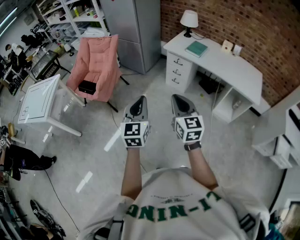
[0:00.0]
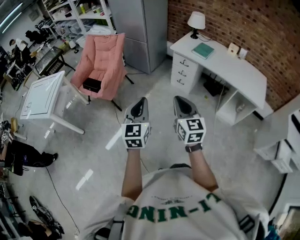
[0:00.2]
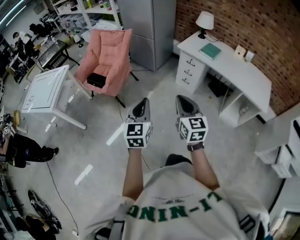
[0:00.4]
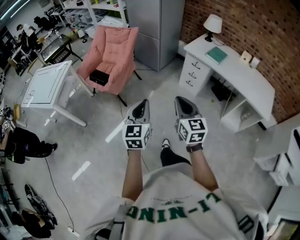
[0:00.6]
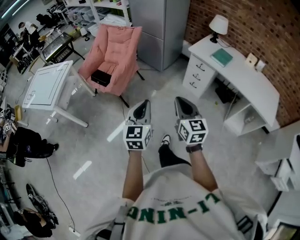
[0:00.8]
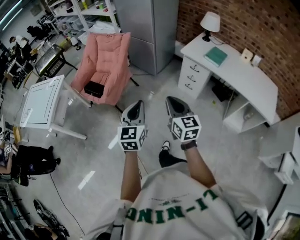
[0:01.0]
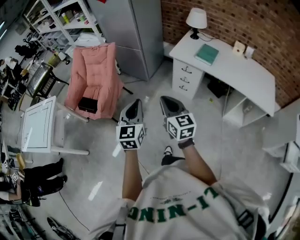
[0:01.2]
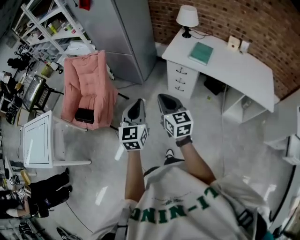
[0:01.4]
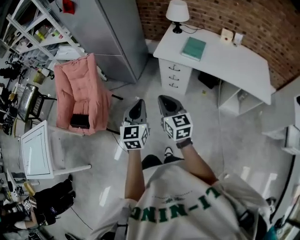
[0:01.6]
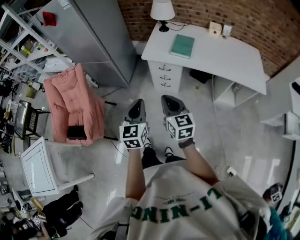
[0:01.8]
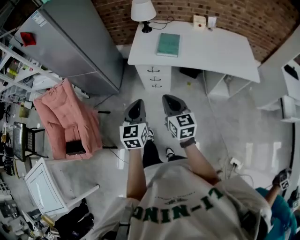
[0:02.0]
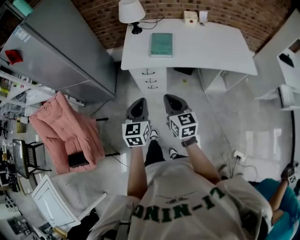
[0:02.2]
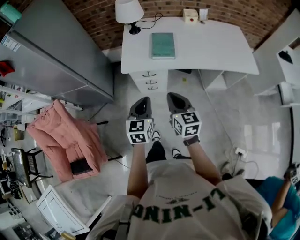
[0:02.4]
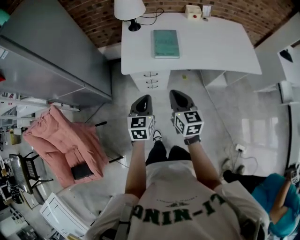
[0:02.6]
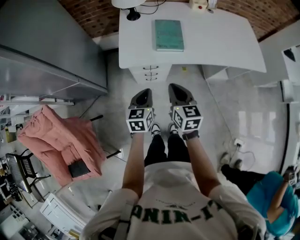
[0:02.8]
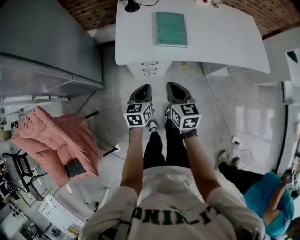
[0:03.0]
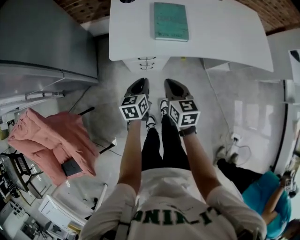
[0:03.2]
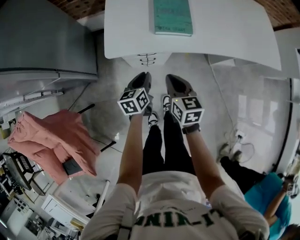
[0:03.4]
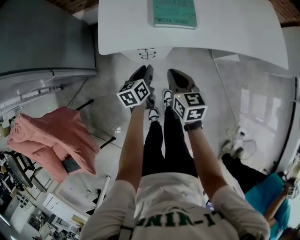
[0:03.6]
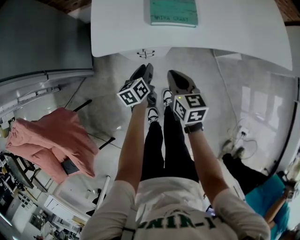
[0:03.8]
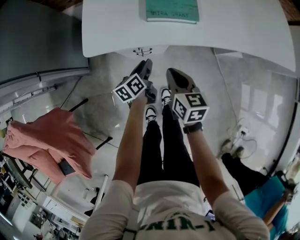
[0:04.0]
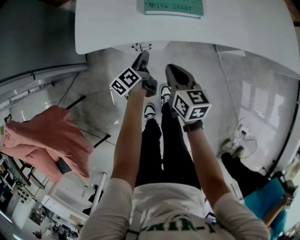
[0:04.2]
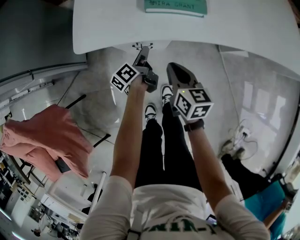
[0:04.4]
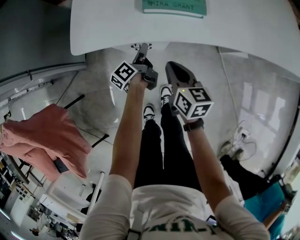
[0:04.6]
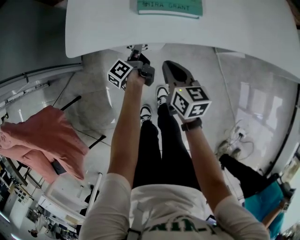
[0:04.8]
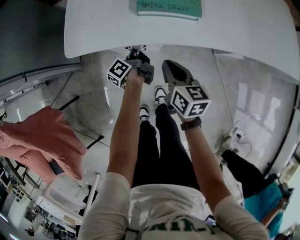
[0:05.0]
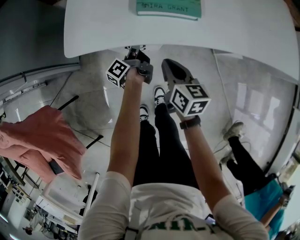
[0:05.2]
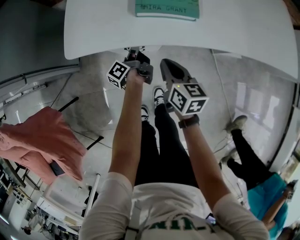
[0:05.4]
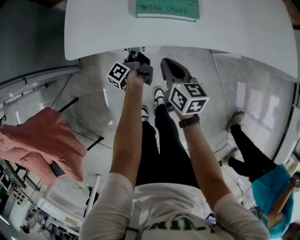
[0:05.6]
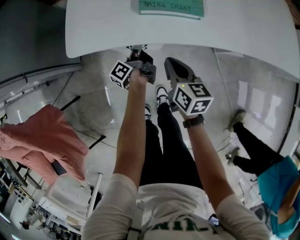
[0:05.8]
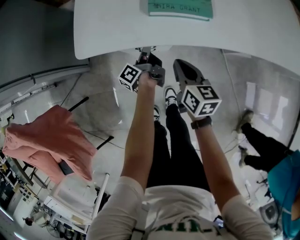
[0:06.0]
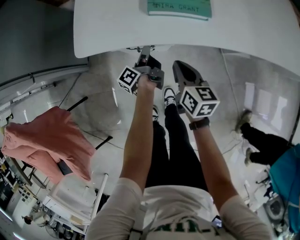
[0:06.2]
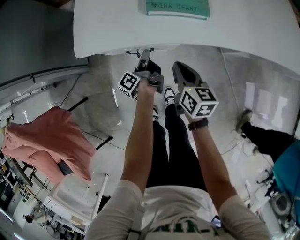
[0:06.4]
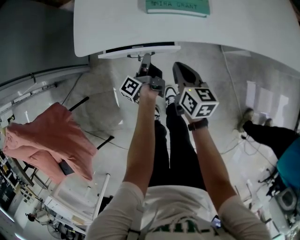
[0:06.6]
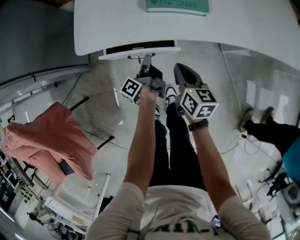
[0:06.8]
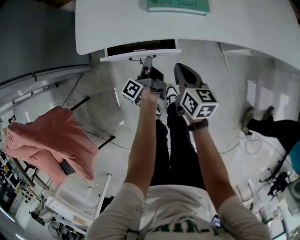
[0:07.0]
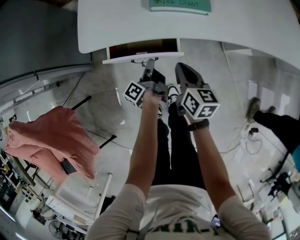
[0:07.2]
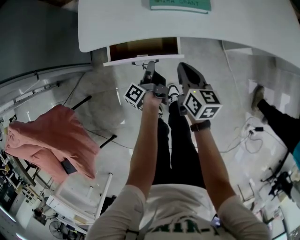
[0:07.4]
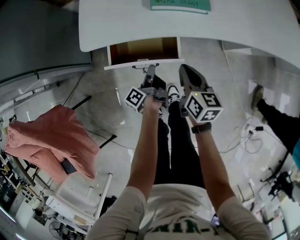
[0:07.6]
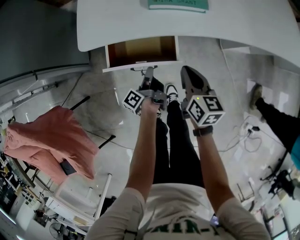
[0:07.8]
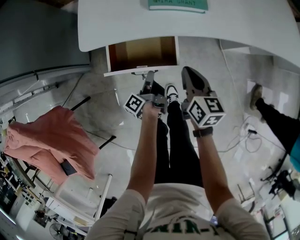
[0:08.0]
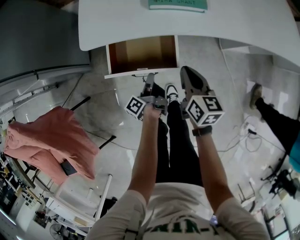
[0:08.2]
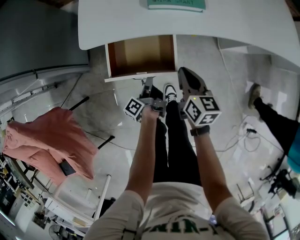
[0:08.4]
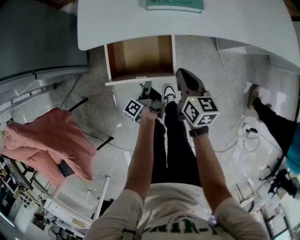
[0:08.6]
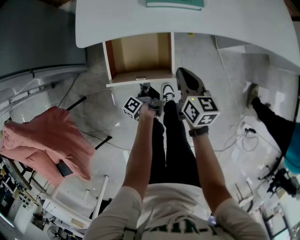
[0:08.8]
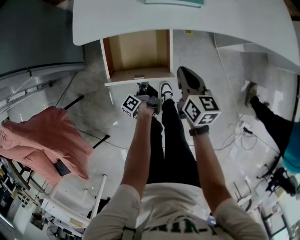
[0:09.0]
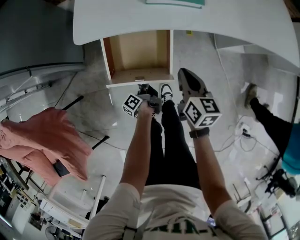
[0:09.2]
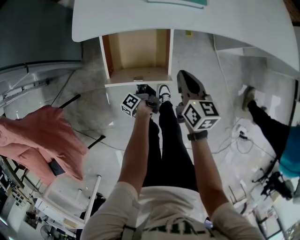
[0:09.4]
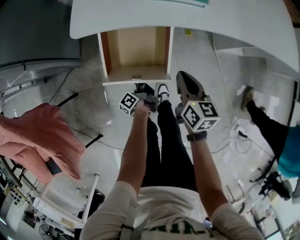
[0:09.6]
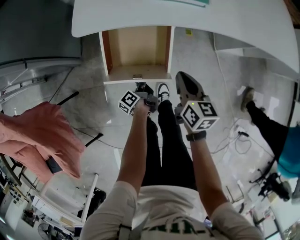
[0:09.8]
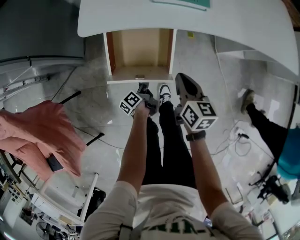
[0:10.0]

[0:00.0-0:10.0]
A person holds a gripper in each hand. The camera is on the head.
0:00.0 to 0:01.4: Both grippers travel together forward, approximately 30 cm.
0:01.4 to 0:02.8: The left gripper moves about 40 cm, and turns by approximately 40 degrees; the right gripper changes place by roughly 35 cm, and changes its angle by approximately 40 degrees.
0:02.8 to 0:04.2: The left gripper goes approximately 35 cm downward and forward, rotates around the line of its fingers by approximately 50 degrees, counterclockwise from behind, and opens; the right gripper moves downward, some 25 cm.
0:04.2 to 0:05.8: The left gripper moves forward, roughly 5 cm, changes its angle by approximately 30 degrees, and closes.
0:05.8 to 0:07.2: The left gripper shifts some 10 cm backward.
0:07.2 to 0:08.6: The left gripper goes about 10 cm backward.
0:08.6 to 0:10.0: The left gripper goes approximately 5 cm downward, and opens.

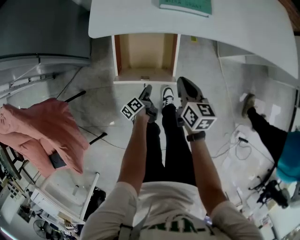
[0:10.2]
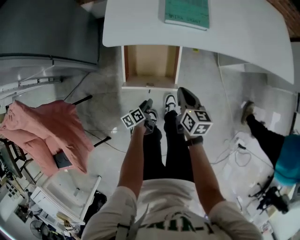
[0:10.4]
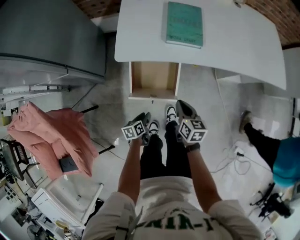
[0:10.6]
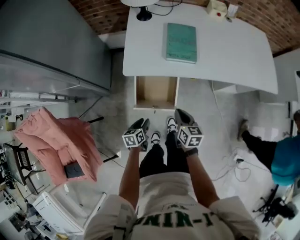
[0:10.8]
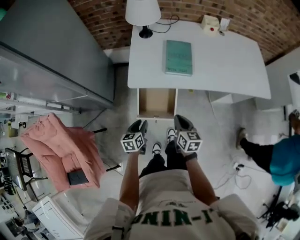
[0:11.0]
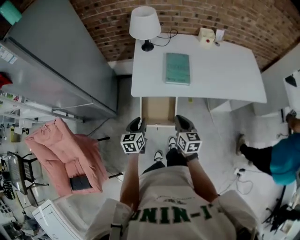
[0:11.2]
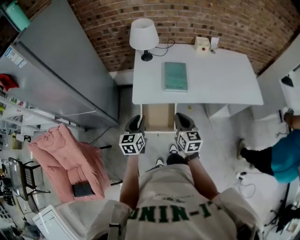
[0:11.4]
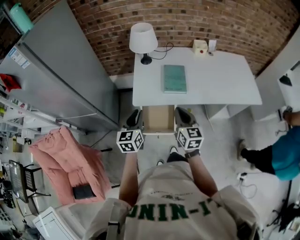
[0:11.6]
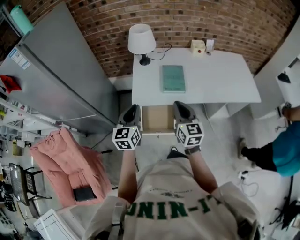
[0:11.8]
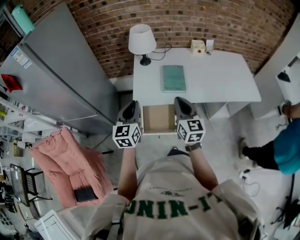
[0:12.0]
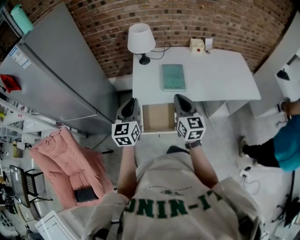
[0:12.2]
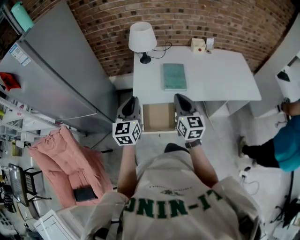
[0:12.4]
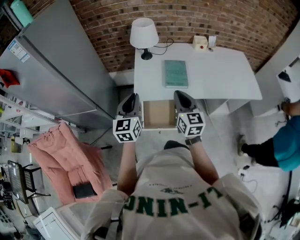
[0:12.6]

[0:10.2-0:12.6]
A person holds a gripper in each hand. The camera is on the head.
0:10.2 to 0:11.4: The right gripper is displaced upward by roughly 30 cm, and turns by roughly 20 degrees; the left gripper travels upward by approximately 50 cm, and rolls clockwise, seen from behind, by roughly 60 degrees.
0:11.4 to 0:12.6: The two grippers go roughly 10 cm upward.

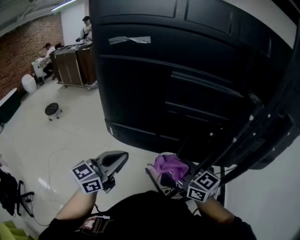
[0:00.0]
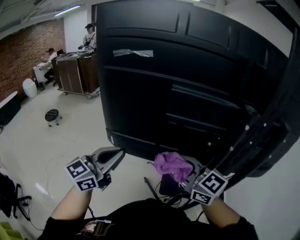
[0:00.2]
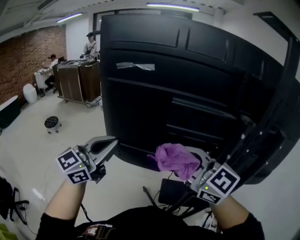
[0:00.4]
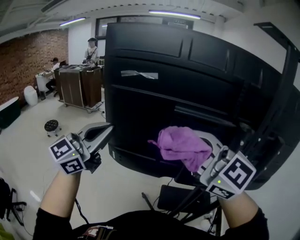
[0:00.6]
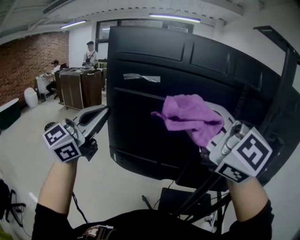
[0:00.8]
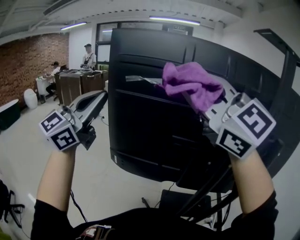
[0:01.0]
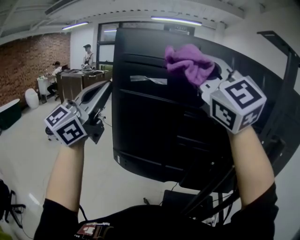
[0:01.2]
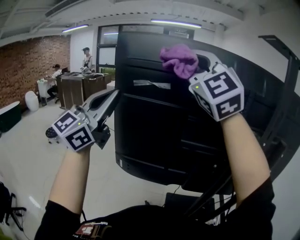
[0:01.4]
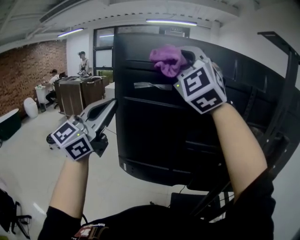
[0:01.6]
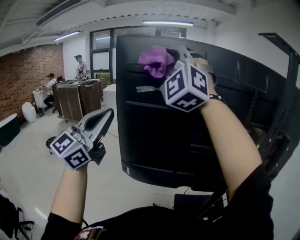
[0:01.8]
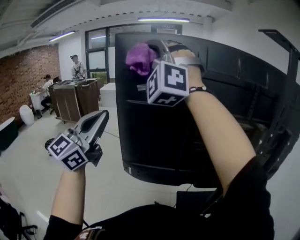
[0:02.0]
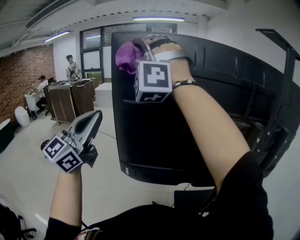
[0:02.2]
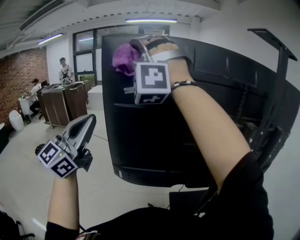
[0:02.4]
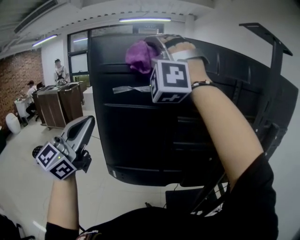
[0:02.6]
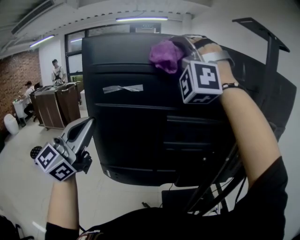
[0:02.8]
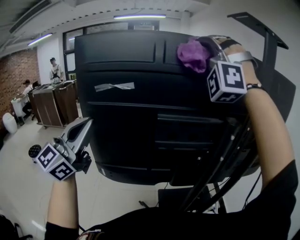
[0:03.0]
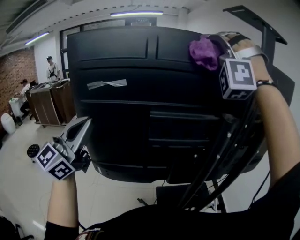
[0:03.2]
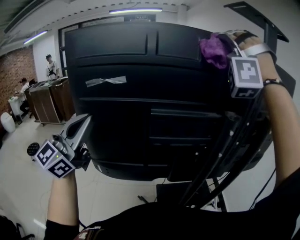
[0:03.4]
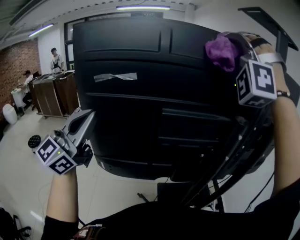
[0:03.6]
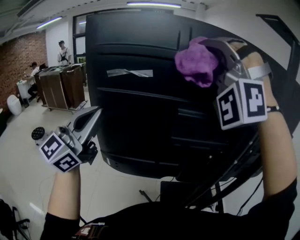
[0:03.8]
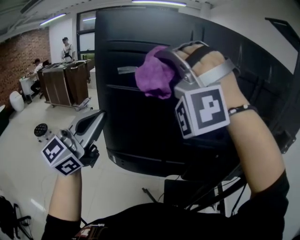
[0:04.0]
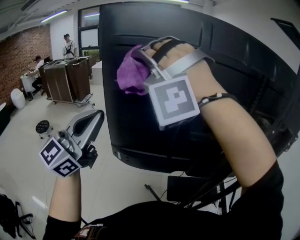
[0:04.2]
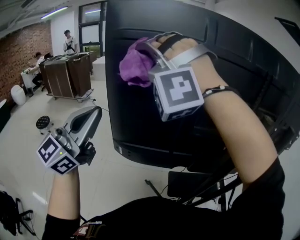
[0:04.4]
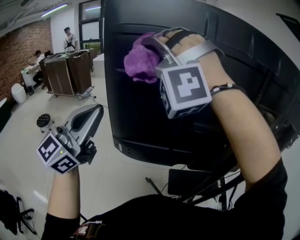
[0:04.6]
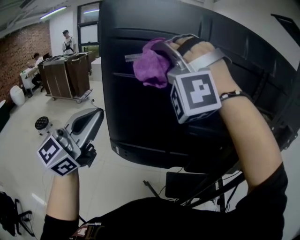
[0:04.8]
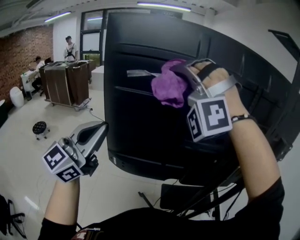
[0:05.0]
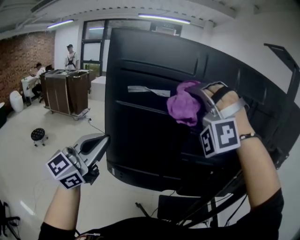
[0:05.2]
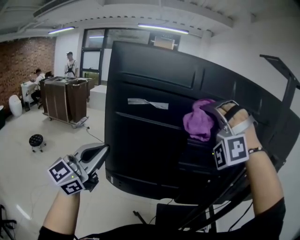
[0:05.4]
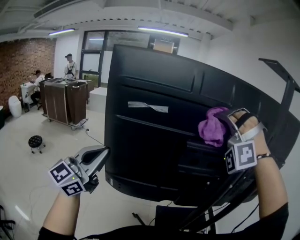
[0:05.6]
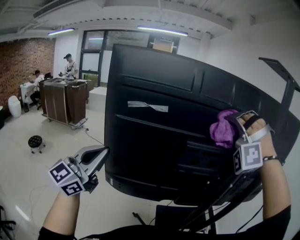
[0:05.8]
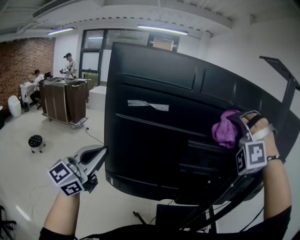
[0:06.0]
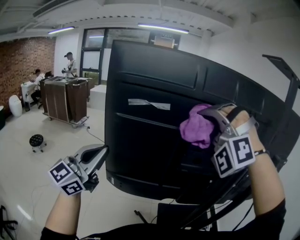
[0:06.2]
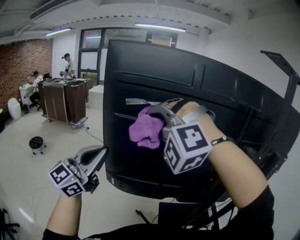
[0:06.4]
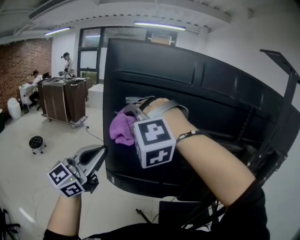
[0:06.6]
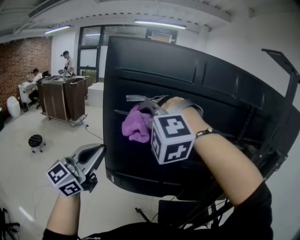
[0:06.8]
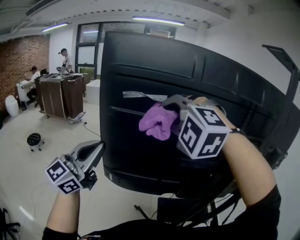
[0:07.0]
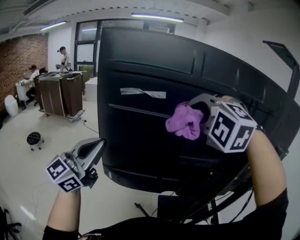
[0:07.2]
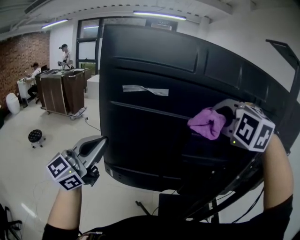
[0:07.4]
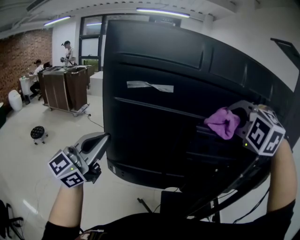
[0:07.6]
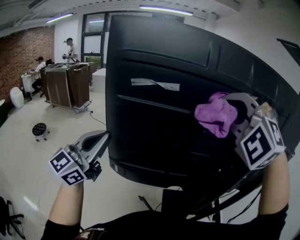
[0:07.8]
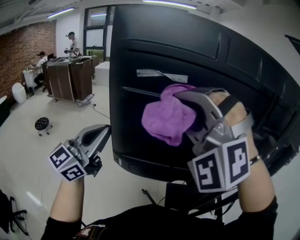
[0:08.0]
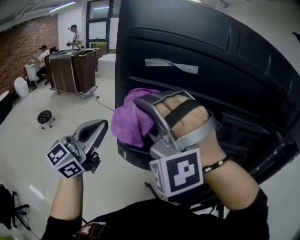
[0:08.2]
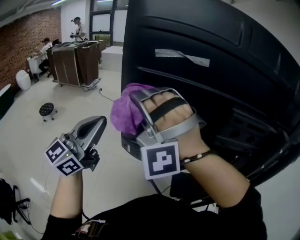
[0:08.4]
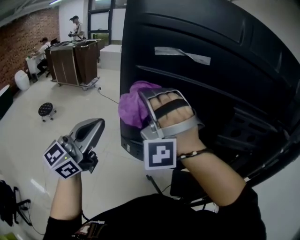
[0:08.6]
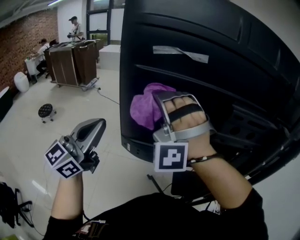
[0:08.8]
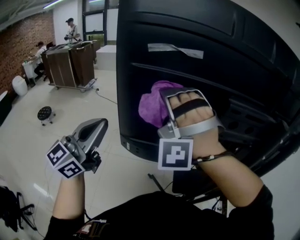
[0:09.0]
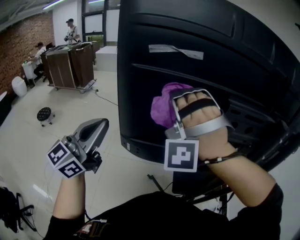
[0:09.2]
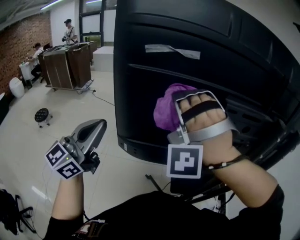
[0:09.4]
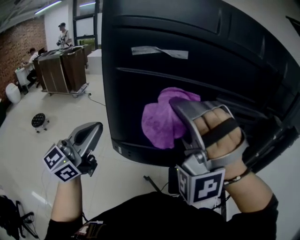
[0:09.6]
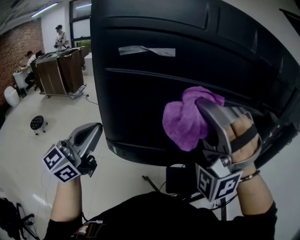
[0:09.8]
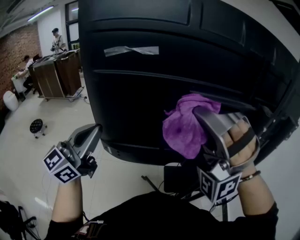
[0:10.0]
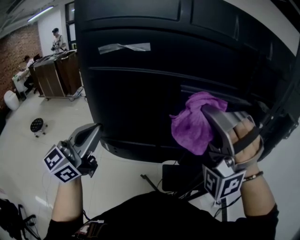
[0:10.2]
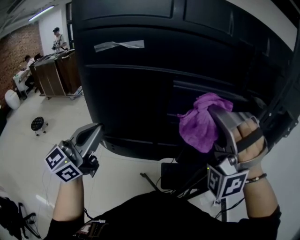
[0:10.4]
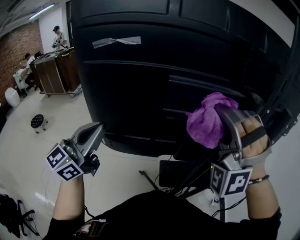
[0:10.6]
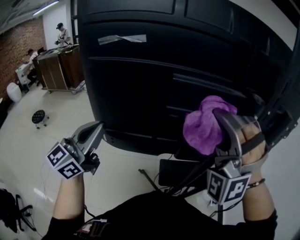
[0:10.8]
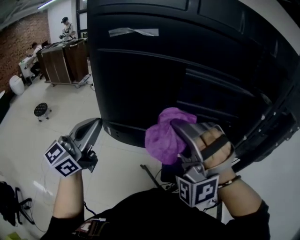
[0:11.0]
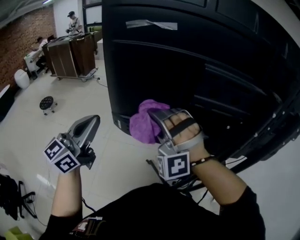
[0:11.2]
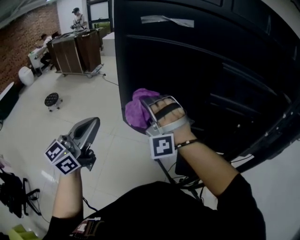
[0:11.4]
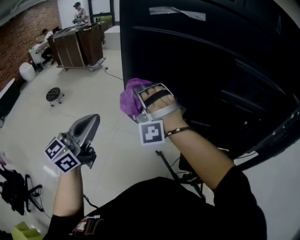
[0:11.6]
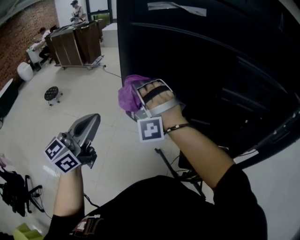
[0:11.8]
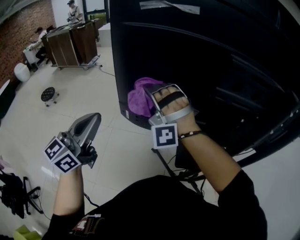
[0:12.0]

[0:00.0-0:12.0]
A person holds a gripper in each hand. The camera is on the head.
0:00.0 to 0:01.6: The left gripper travels upward by approximately 30 cm, and swivels roughly 30 degrees.
0:01.6 to 0:03.0: The left gripper changes place by some 5 cm.
0:03.0 to 0:04.4: The left gripper changes place by some 10 cm.
0:07.6 to 0:09.0: The left gripper changes place by about 10 cm.
0:09.0 to 0:10.4: The left gripper shifts by about 10 cm.
0:10.4 to 0:12.0: The left gripper changes place by about 15 cm.
